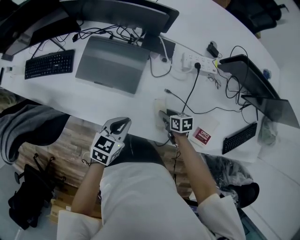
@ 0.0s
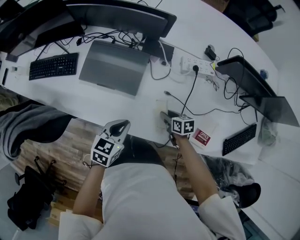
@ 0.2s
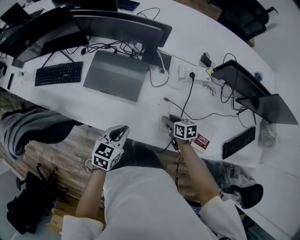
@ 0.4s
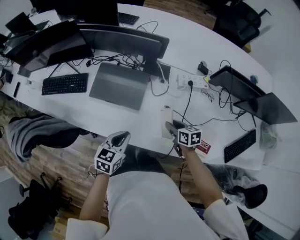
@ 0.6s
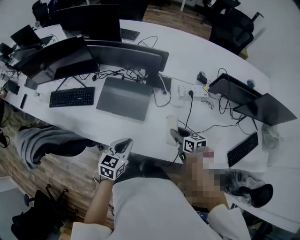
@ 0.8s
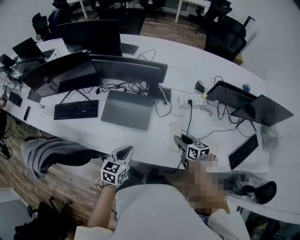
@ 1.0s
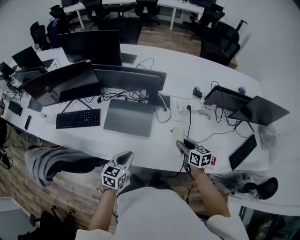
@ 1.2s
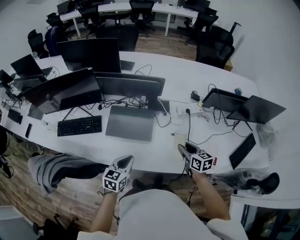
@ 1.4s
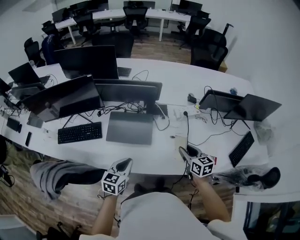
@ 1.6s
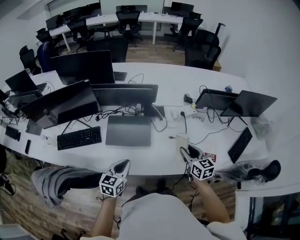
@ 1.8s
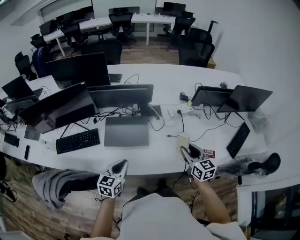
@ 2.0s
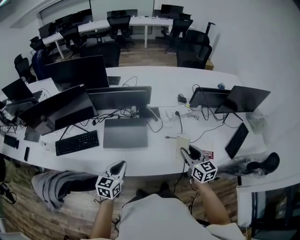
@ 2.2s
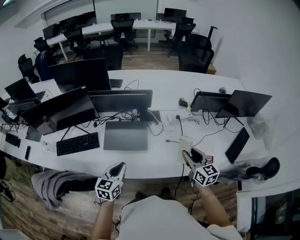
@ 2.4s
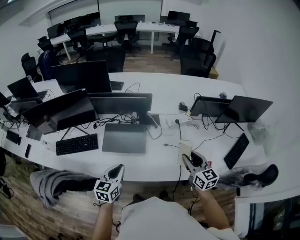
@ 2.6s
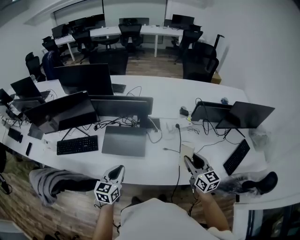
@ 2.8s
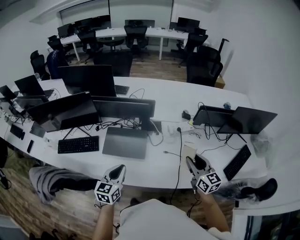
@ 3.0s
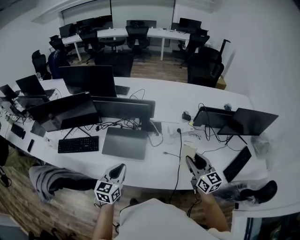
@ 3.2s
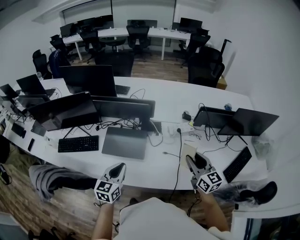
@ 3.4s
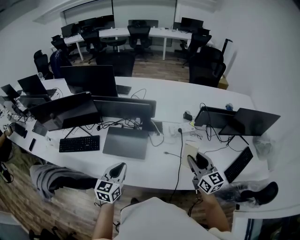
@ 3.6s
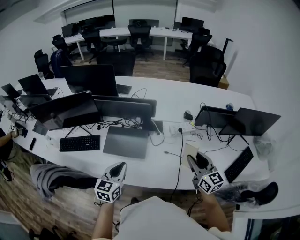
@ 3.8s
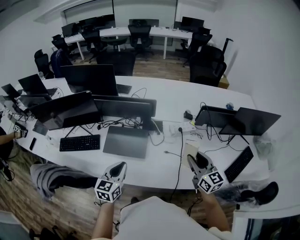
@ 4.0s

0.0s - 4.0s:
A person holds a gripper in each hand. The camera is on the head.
0.0s - 1.4s: The left gripper heads upward and to the left, covering some 20 cm; the right gripper is displaced upward by some 30 cm, and swivels about 30 degrees.
1.4s - 2.6s: The left gripper moves upward, some 5 cm, while the right gripper heads upward and backward, covering about 15 cm, and swivels some 20 degrees.
2.6s - 4.0s: The right gripper moves about 5 cm. Meanwhile the left gripper travels to the right by about 5 cm.

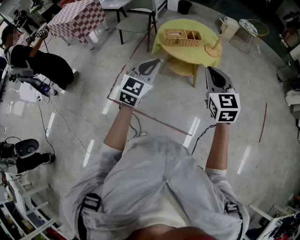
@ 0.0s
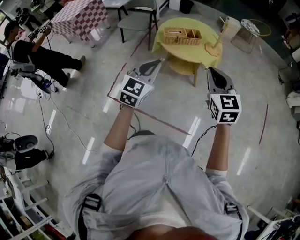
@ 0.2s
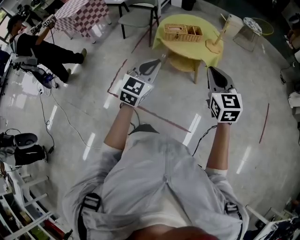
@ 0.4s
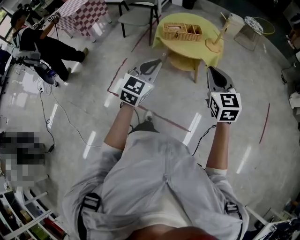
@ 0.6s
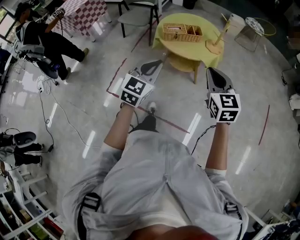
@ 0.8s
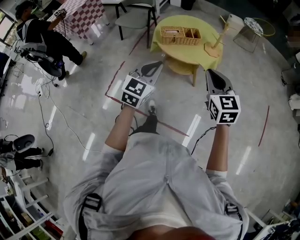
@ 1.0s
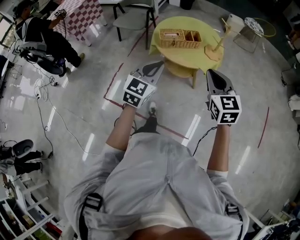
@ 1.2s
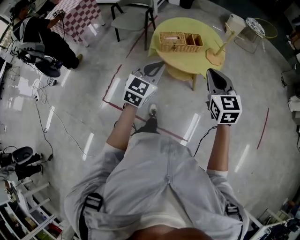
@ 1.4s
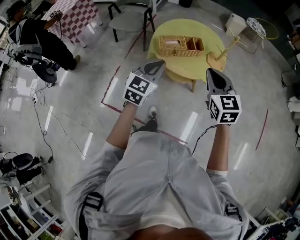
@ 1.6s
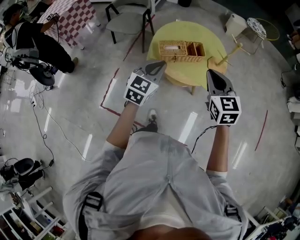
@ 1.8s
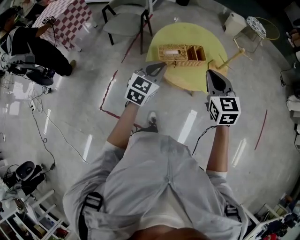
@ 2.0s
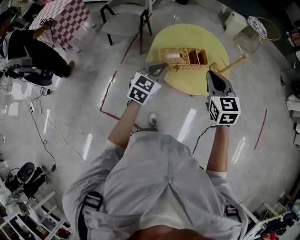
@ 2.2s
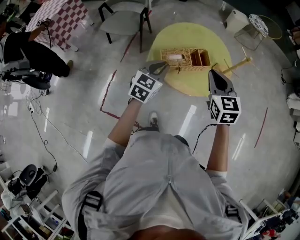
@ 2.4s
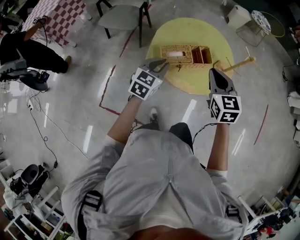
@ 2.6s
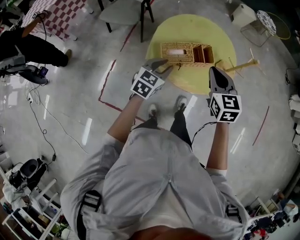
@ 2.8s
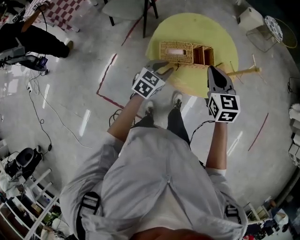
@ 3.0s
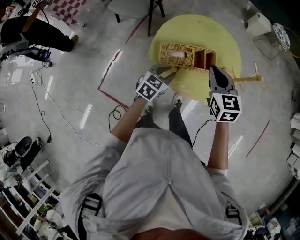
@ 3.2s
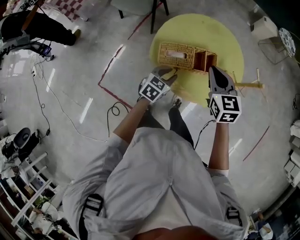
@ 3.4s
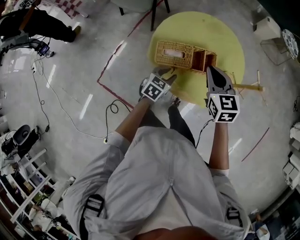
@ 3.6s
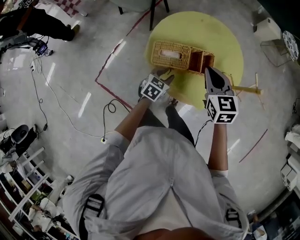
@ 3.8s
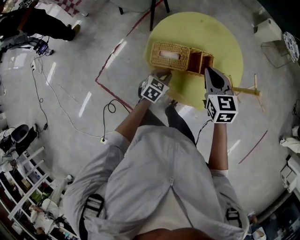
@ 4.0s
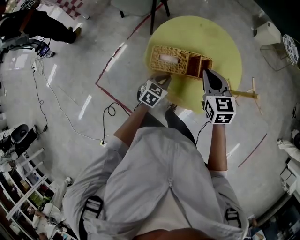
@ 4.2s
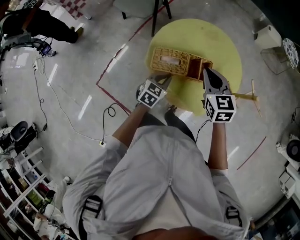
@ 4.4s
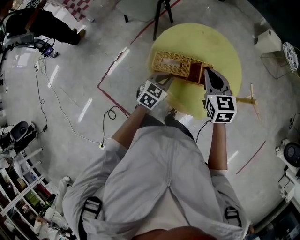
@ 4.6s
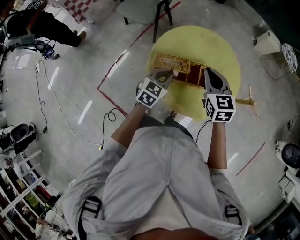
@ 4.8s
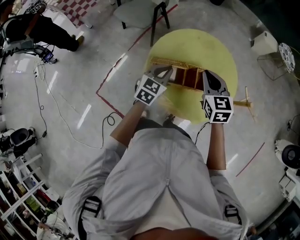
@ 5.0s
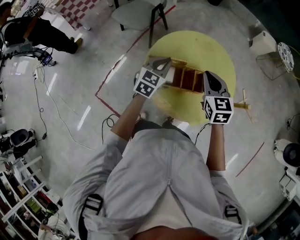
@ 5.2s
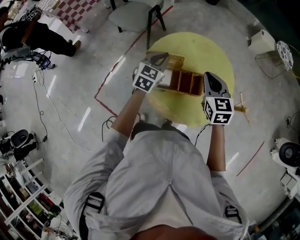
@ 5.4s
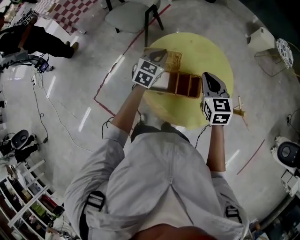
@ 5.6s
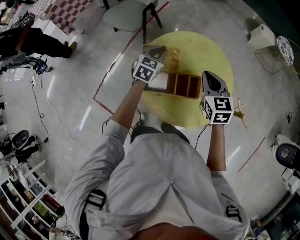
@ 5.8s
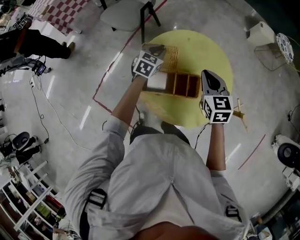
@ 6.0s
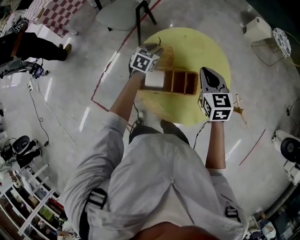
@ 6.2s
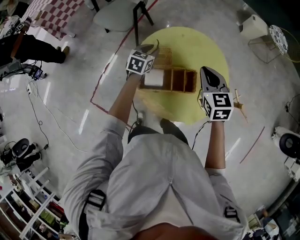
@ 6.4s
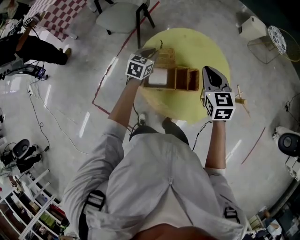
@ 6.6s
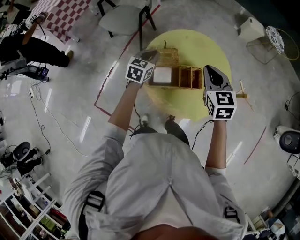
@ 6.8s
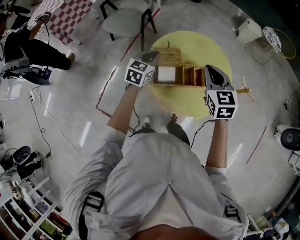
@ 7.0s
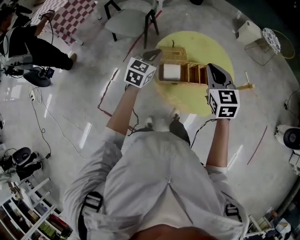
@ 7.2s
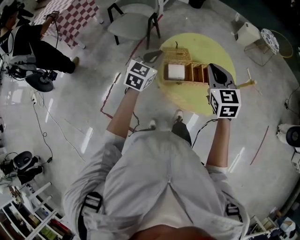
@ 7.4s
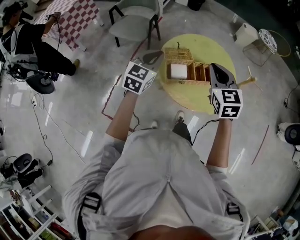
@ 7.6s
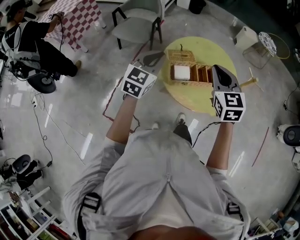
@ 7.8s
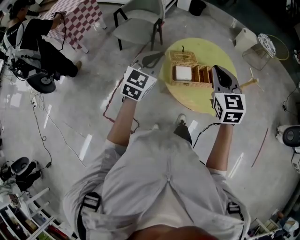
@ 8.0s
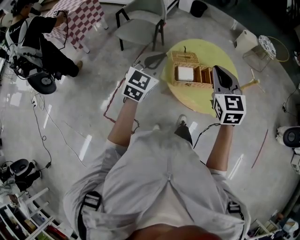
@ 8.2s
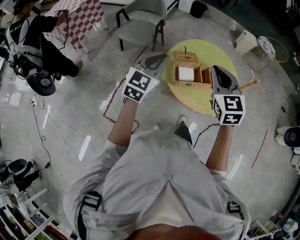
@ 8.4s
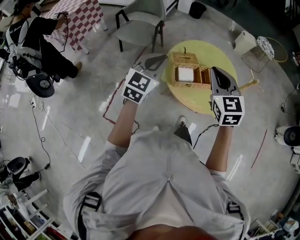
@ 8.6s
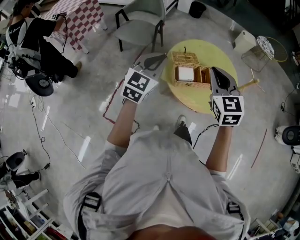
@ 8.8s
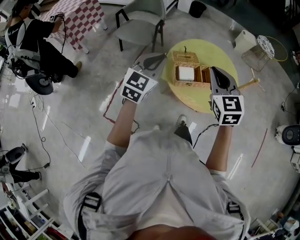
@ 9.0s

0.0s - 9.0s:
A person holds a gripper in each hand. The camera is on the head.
0.0s - 1.6s: Both grippers move forward, some 25 cm.
1.6s - 3.0s: The left gripper travels forward and downward by roughly 25 cm, changes its angle by some 20 degrees, and opens its fingers, while the right gripper heads forward, covering about 25 cm.
3.0s - 4.4s: The right gripper heads forward and downward, covering about 10 cm. Meanwhile the left gripper shifts approximately 10 cm downward.
4.4s - 6.0s: The left gripper moves forward, approximately 25 cm. Meanwhile the right gripper moves forward, some 10 cm.
6.0s - 7.6s: The two grippers go approximately 25 cm backward, upward and to the left. The left gripper turns by approximately 20 degrees.
7.6s - 9.0s: The right gripper is displaced to the left and backward by roughly 10 cm. The left gripper heads backward and upward, covering some 10 cm.

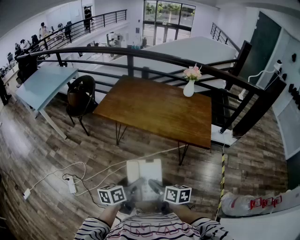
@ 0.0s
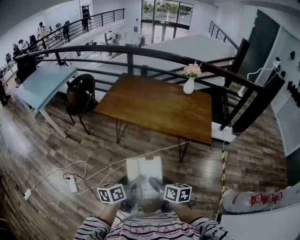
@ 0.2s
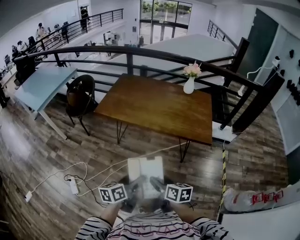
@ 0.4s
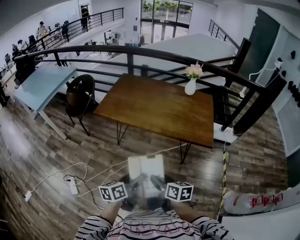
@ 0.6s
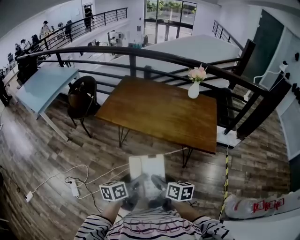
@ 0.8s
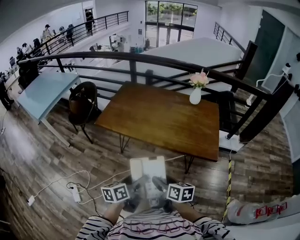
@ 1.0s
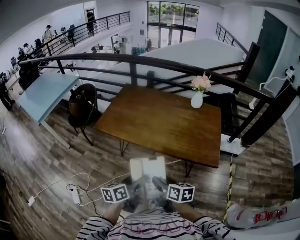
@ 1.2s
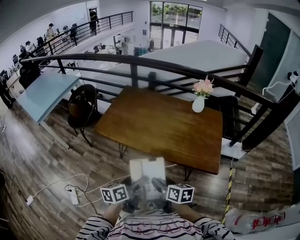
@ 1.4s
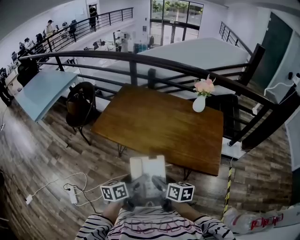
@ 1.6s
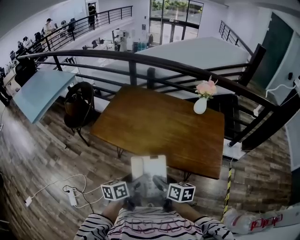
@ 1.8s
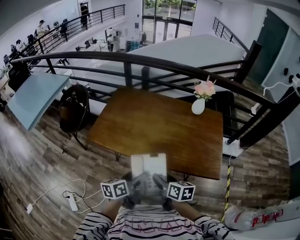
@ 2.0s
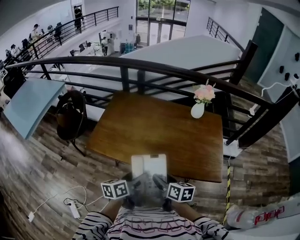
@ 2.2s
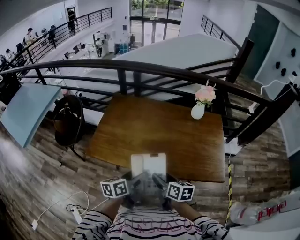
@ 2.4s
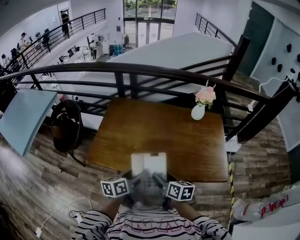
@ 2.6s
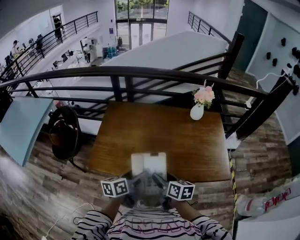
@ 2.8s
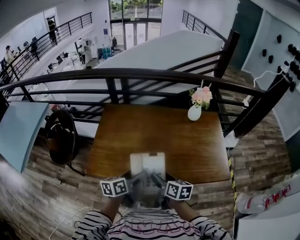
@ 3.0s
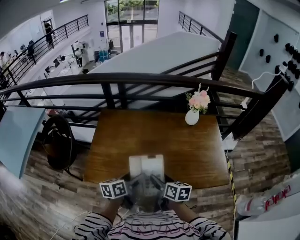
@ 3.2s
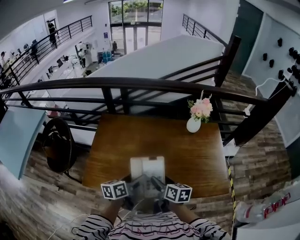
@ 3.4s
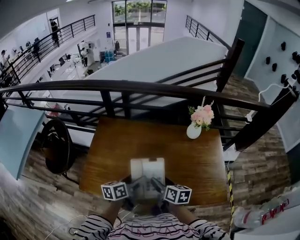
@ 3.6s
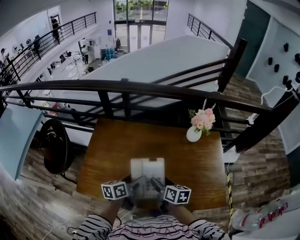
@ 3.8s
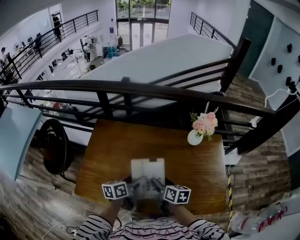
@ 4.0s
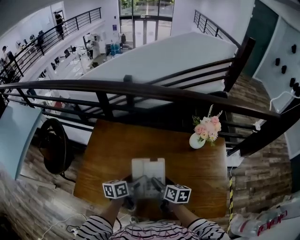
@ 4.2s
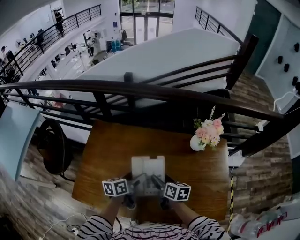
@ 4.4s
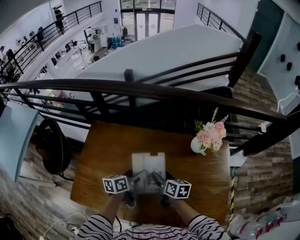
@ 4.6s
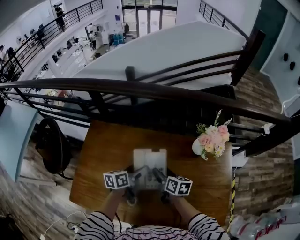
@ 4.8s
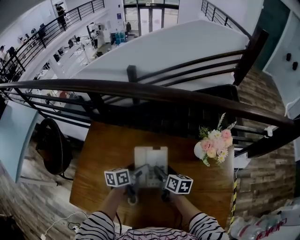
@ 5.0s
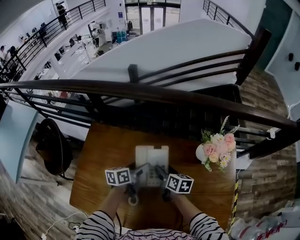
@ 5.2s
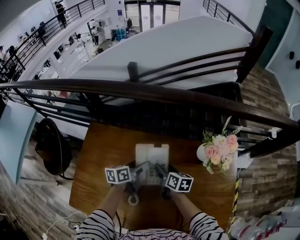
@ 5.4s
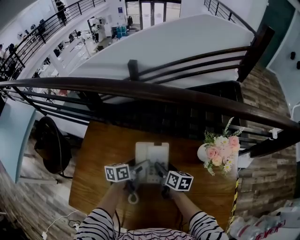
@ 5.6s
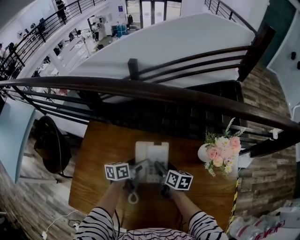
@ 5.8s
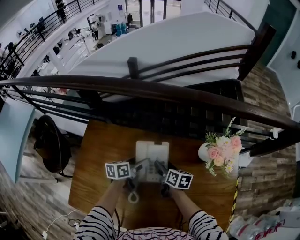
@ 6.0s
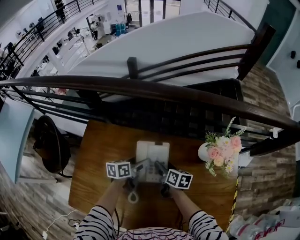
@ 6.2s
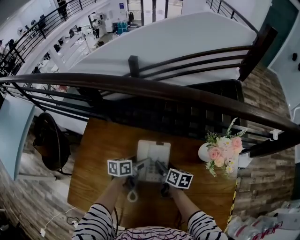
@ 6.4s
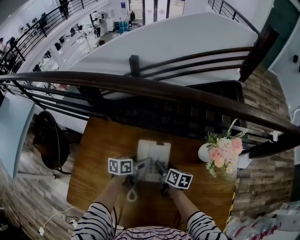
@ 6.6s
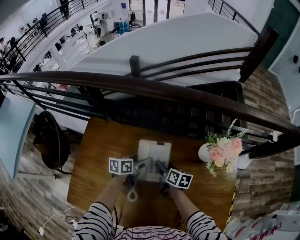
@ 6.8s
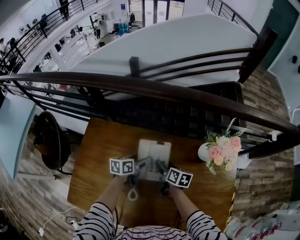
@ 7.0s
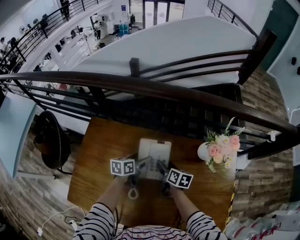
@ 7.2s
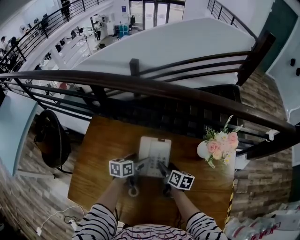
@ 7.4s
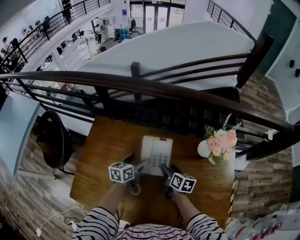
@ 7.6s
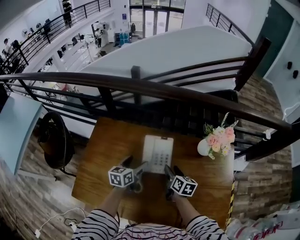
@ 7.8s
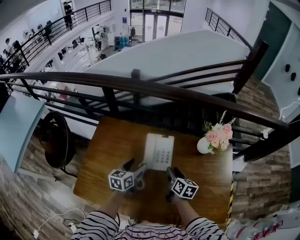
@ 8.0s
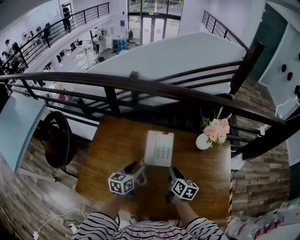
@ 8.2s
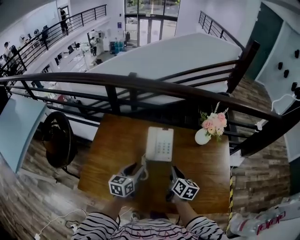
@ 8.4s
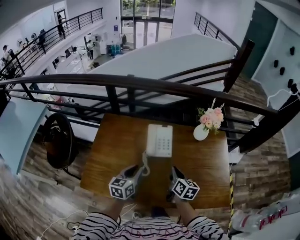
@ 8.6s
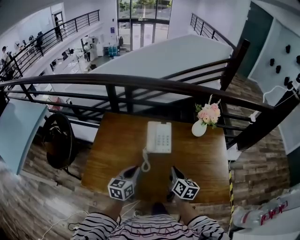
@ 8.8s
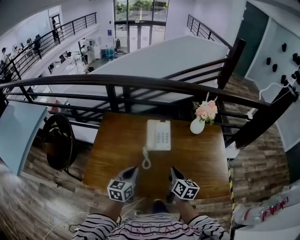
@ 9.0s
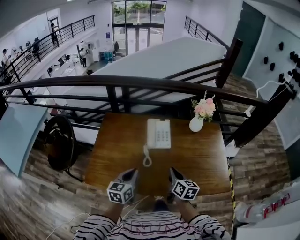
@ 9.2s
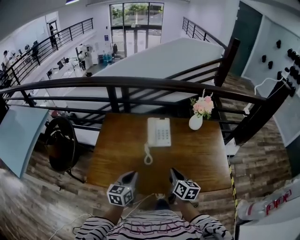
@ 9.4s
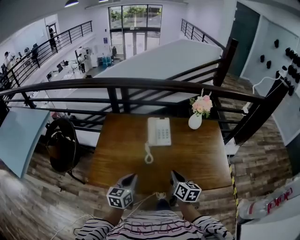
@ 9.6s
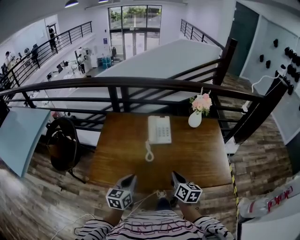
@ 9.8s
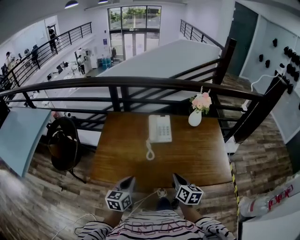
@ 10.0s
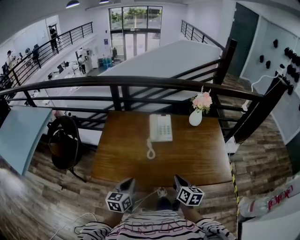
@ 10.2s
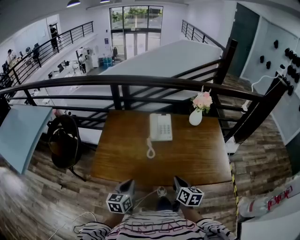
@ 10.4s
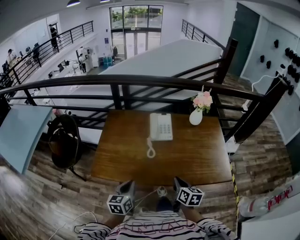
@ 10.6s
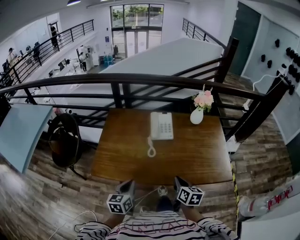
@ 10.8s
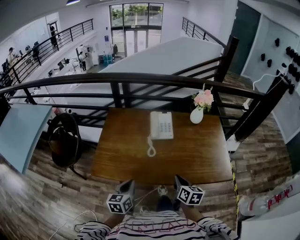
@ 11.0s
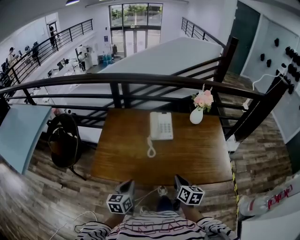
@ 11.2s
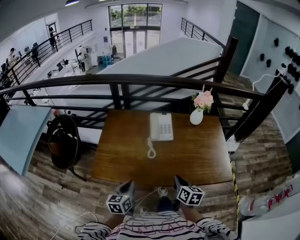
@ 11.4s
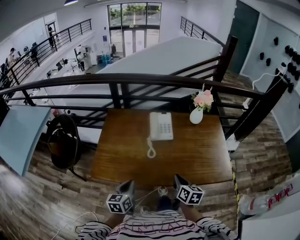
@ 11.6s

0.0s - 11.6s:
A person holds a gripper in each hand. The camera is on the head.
0.0s - 1.4s: Both grippers move forward, approximately 25 cm.
1.4s - 2.8s: Both grippers travel together forward and to the left, roughly 30 cm.
2.8s - 4.4s: Both grippers travel together forward, approximately 35 cm.
4.4s - 5.8s: The grippers both shift forward by some 20 cm.
5.8s - 7.2s: The grippers make only small movements.
7.2s - 8.8s: The two grippers go about 35 cm backward and upward. The right gripper rotates about 20 degrees, and closes up. The left gripper turns by roughly 30 degrees, and closes.
8.8s - 10.2s: Both grippers move backward, approximately 20 cm.
10.2s - 11.6s: The grippers stay close to where they were, moving slightly.
